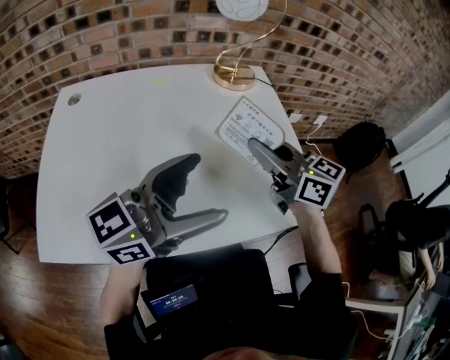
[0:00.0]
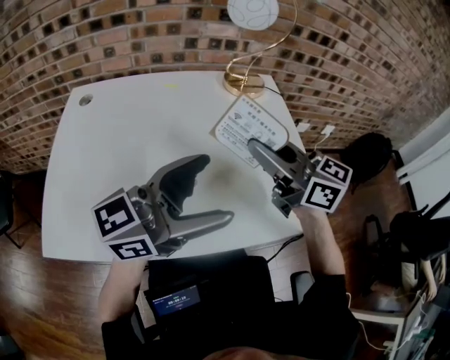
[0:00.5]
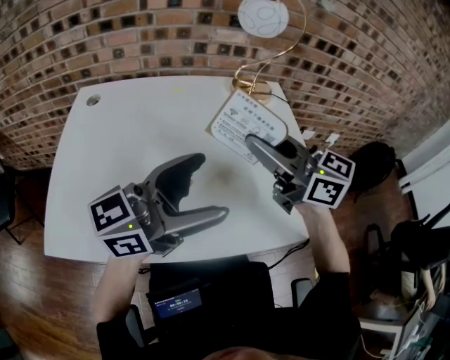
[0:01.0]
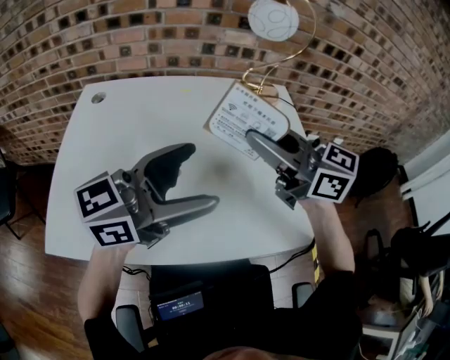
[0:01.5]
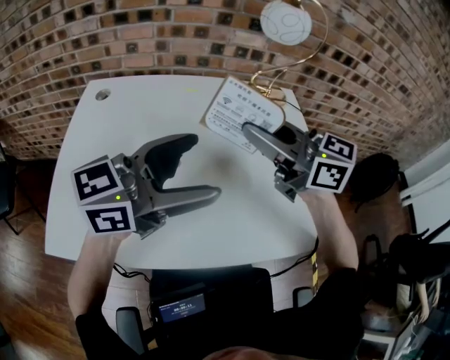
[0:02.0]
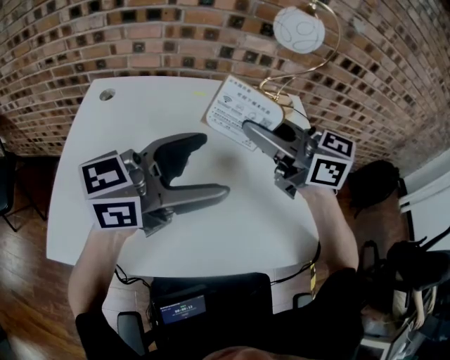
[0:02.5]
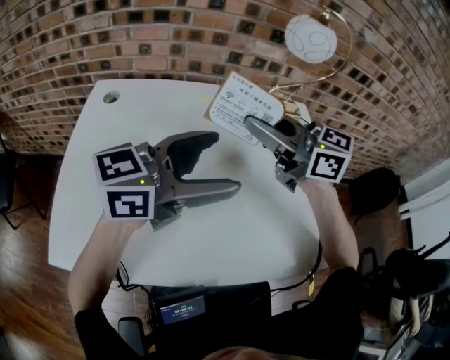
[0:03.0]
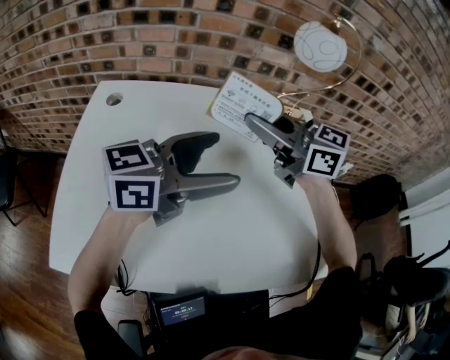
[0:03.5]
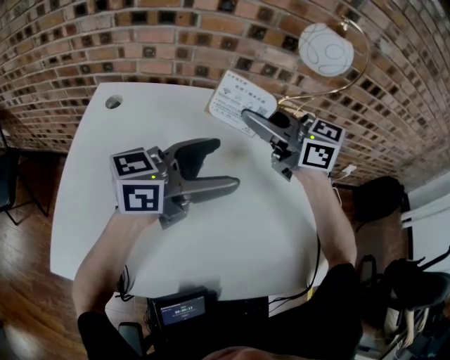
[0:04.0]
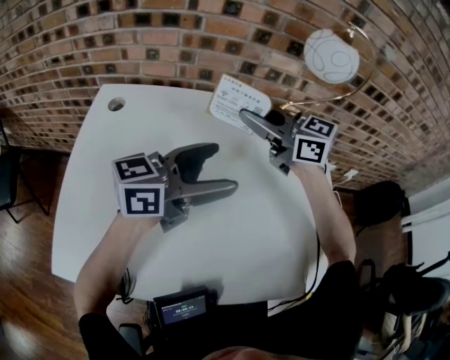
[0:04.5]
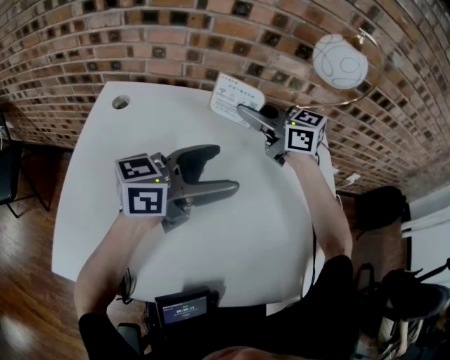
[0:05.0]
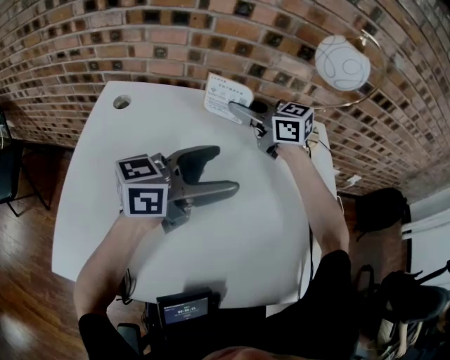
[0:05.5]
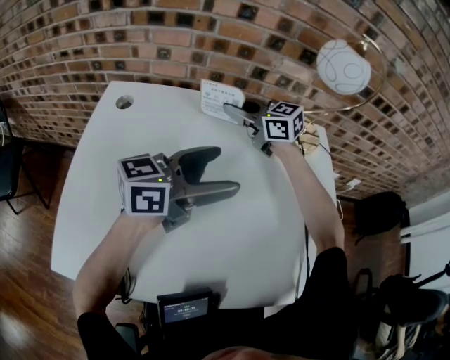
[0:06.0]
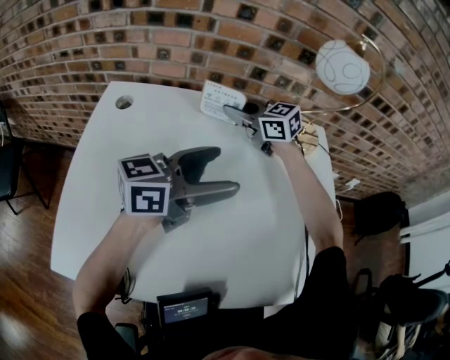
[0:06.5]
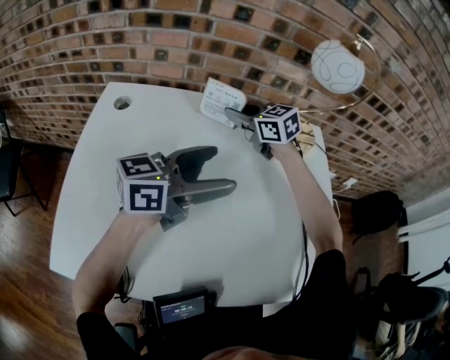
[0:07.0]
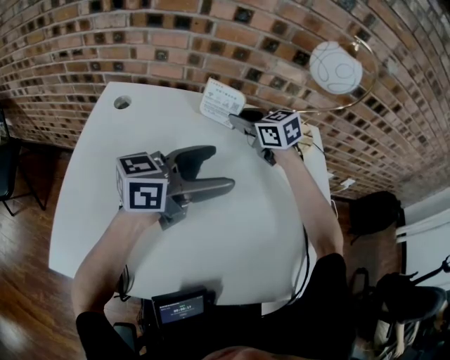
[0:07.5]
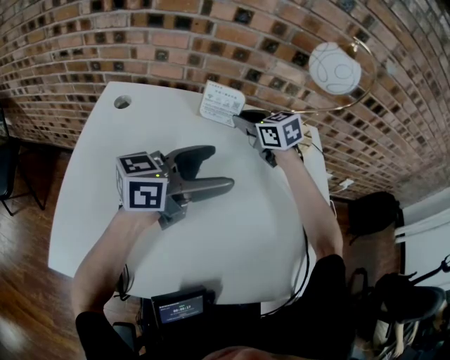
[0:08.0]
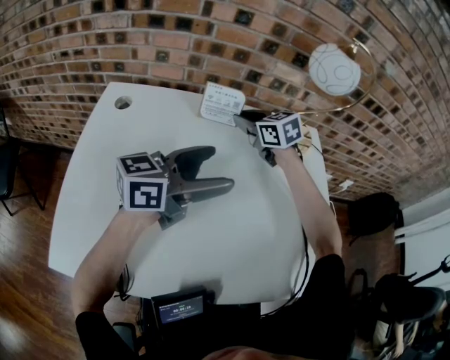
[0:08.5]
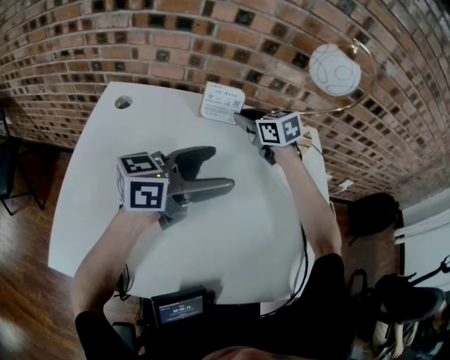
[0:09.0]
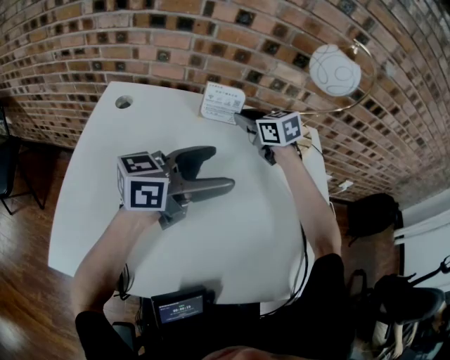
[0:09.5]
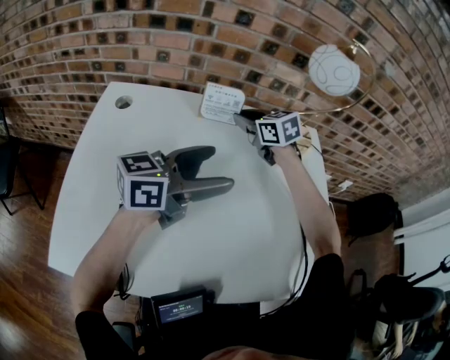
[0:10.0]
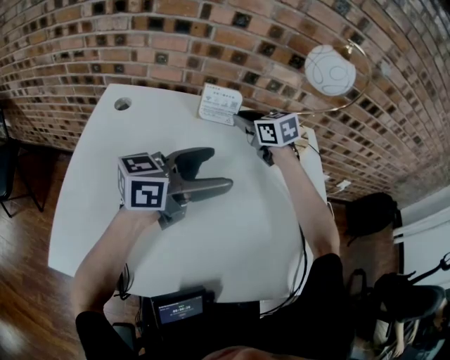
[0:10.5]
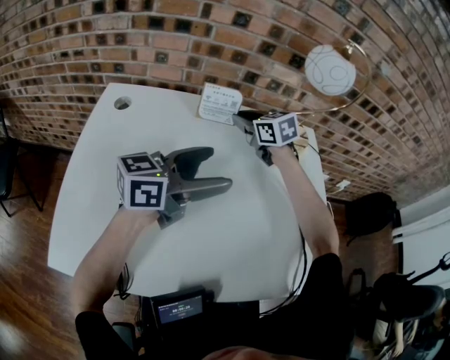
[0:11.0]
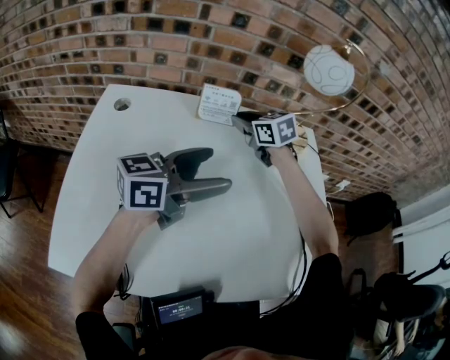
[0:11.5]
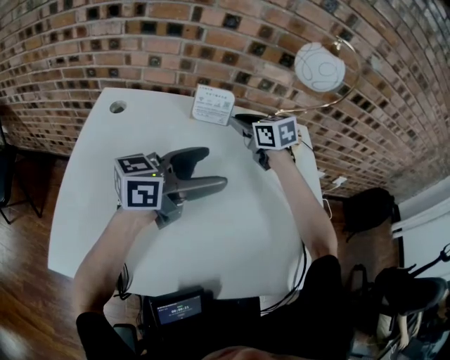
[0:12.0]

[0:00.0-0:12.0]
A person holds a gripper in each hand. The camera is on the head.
0:00.0 to 0:02.0: The right gripper ends up approximately 15 cm from where it was, and turns by about 20 degrees. The left gripper ends up about 10 cm from where it was.
0:02.0 to 0:04.0: The right gripper moves approximately 15 cm; the left gripper shifts by approximately 10 cm.
0:04.0 to 0:06.0: The right gripper ends up some 15 cm from where it was.
0:06.0 to 0:08.0: The right gripper changes place by approximately 5 cm, and rotates some 20 degrees.
0:08.0 to 0:10.0: The two grippers keep their place.
0:10.0 to 0:12.0: The grippers stay close to where they were, moving slightly.

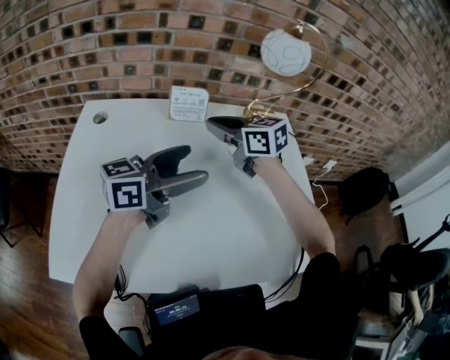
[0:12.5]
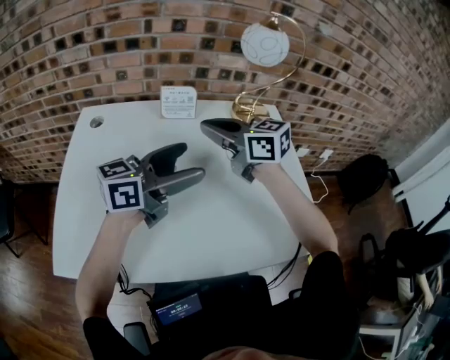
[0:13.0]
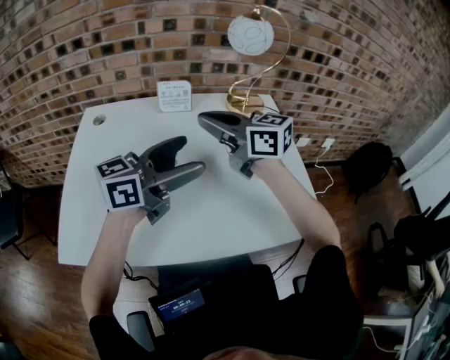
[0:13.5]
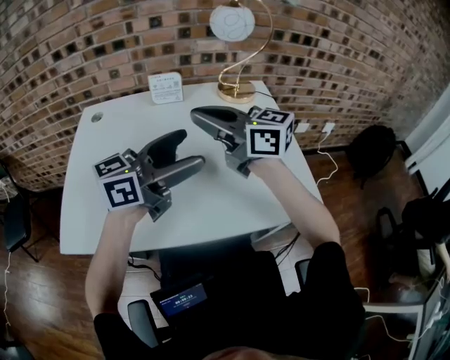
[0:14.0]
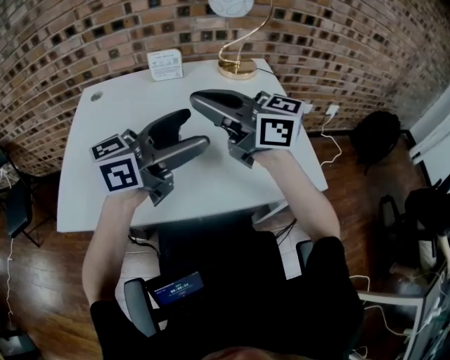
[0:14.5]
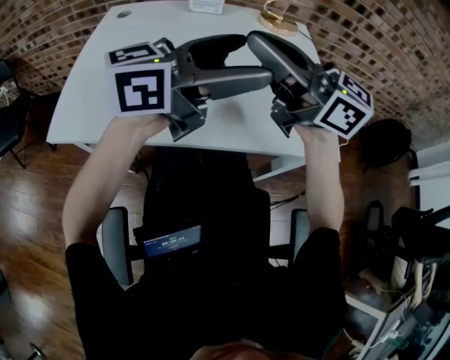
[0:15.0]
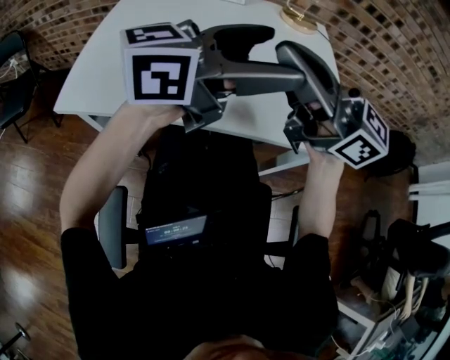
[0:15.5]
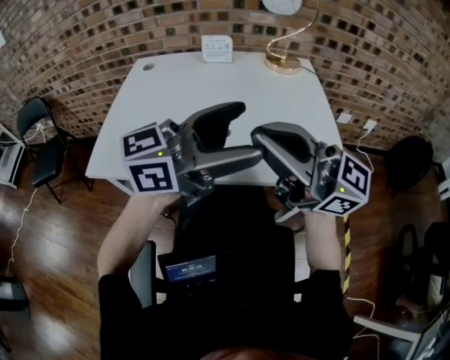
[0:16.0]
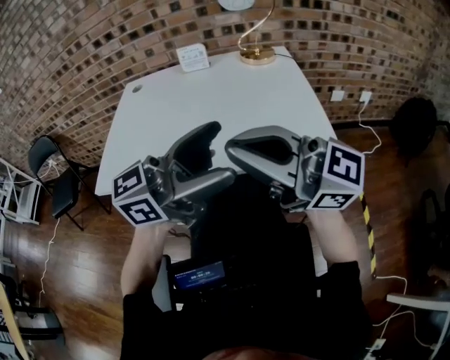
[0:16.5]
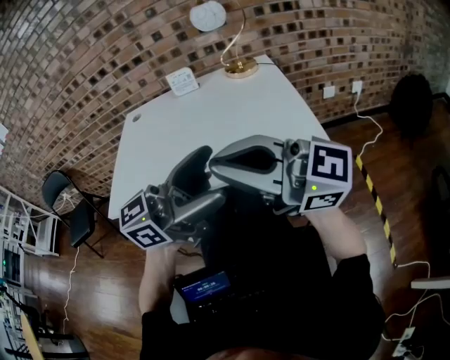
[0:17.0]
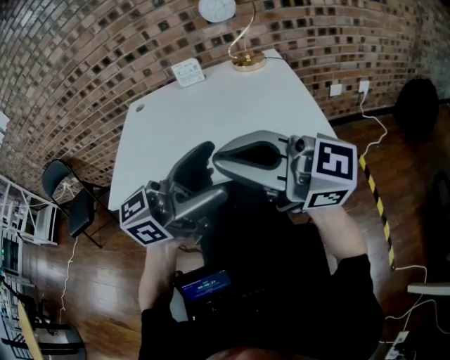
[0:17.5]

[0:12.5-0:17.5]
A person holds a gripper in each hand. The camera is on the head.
0:12.5 to 0:15.0: The right gripper changes place by roughly 35 cm, and points its fingers about 30 degrees further upward. Meanwhile the left gripper moves approximately 20 cm.
0:15.0 to 0:17.5: The left gripper shifts by some 15 cm; the right gripper shifts by roughly 20 cm.

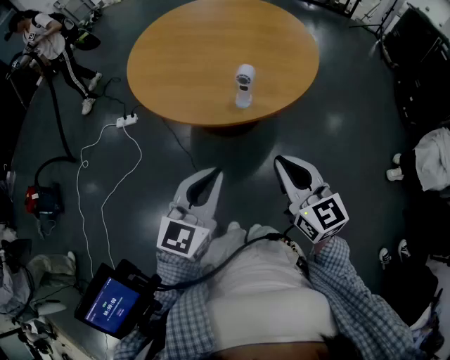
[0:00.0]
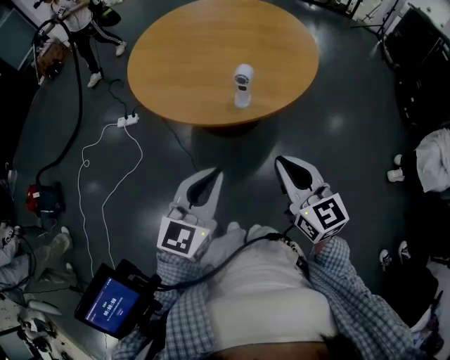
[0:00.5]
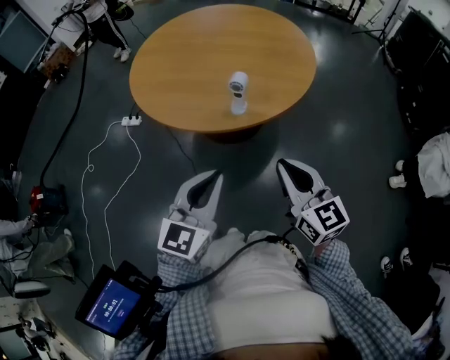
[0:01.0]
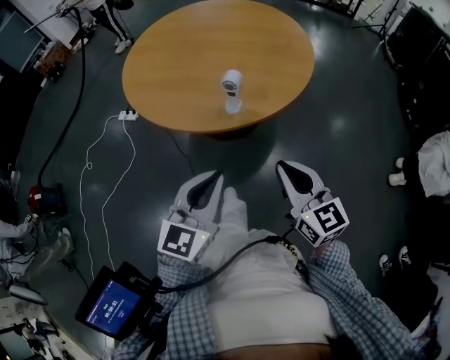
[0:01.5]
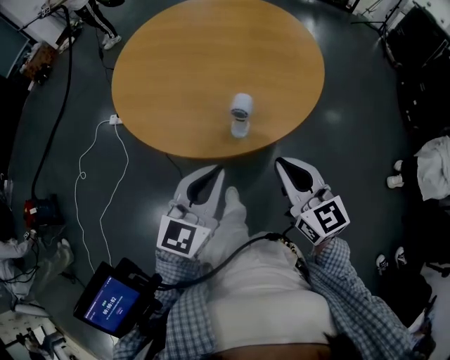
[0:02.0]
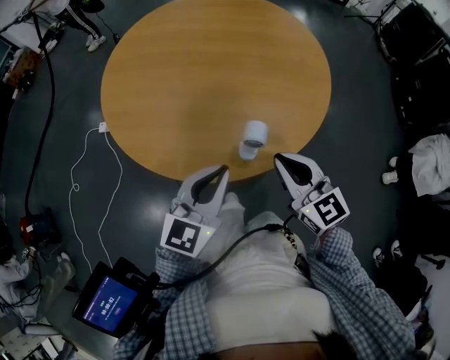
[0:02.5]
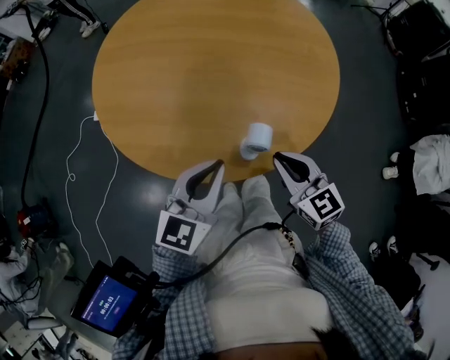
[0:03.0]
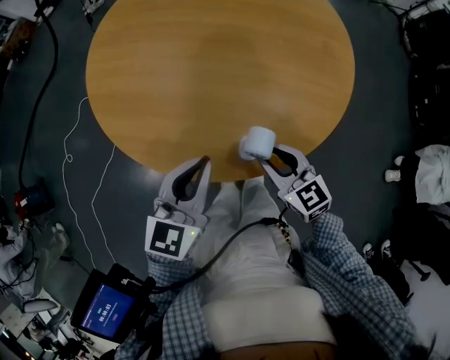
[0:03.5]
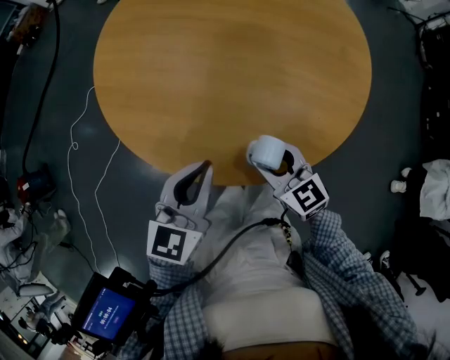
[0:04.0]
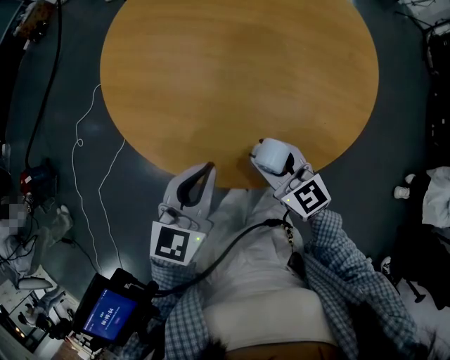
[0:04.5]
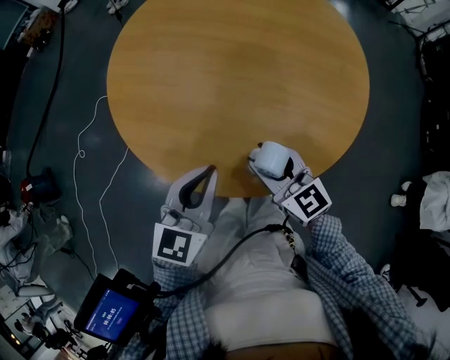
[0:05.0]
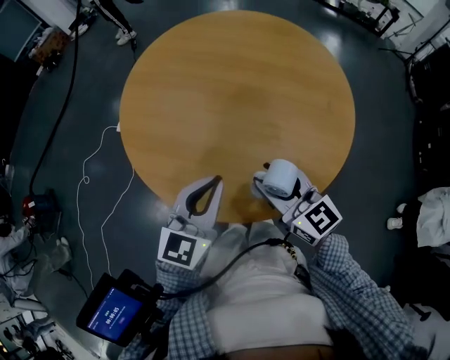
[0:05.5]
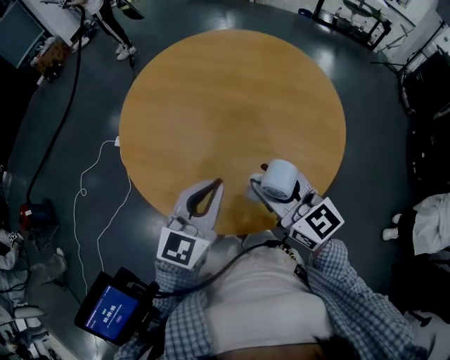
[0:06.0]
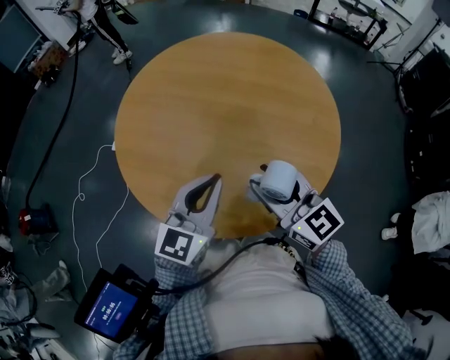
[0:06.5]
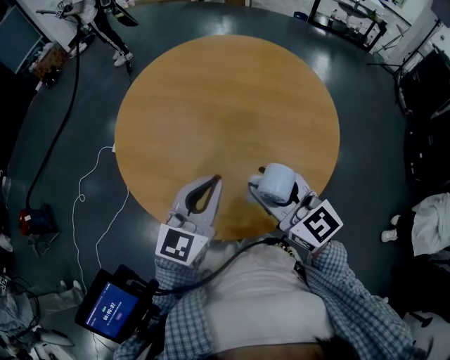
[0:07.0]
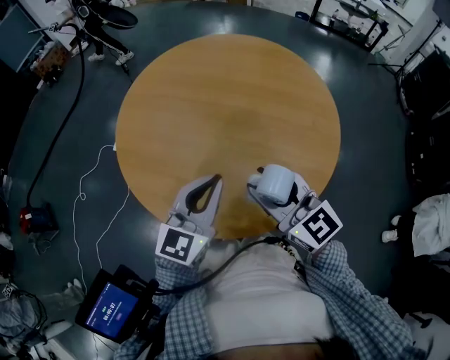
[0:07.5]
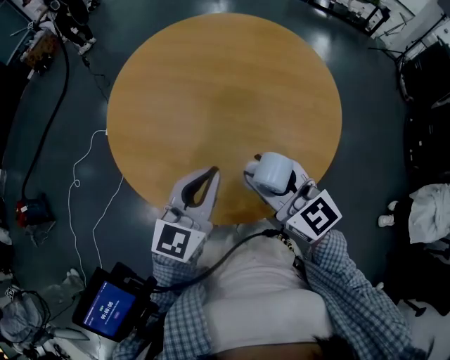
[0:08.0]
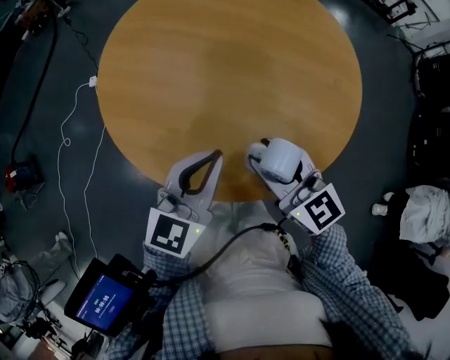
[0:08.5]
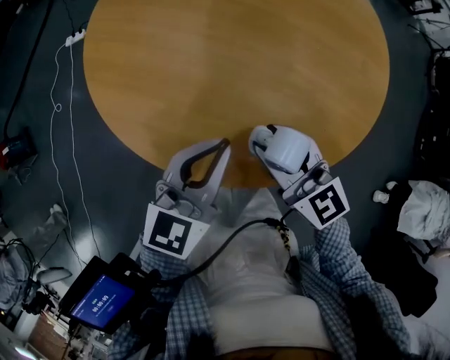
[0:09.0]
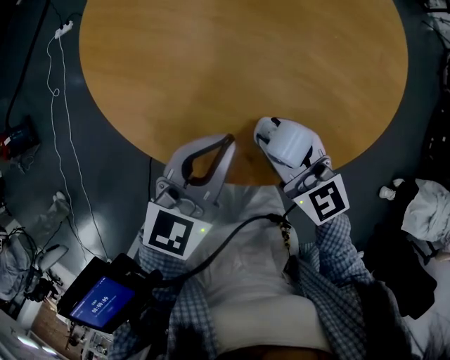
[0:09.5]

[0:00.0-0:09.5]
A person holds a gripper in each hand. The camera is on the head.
0:00.0 to 0:02.0: The two grippers go some 10 cm forward.
0:02.0 to 0:04.0: The right gripper travels downward, forward and to the left by approximately 20 cm, swivels approximately 20 degrees, and opens its fingers, while the left gripper travels forward, to the left and downward by approximately 15 cm.
0:04.0 to 0:05.5: The left gripper shifts by roughly 5 cm. The right gripper goes some 10 cm upward.
0:05.5 to 0:07.5: The right gripper shifts some 5 cm upward.
0:07.5 to 0:09.5: The left gripper moves downward, approximately 10 cm, while the right gripper heads downward, covering roughly 15 cm.
